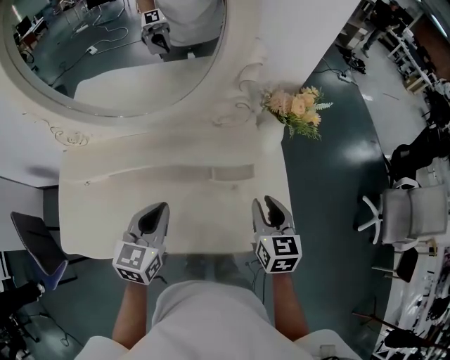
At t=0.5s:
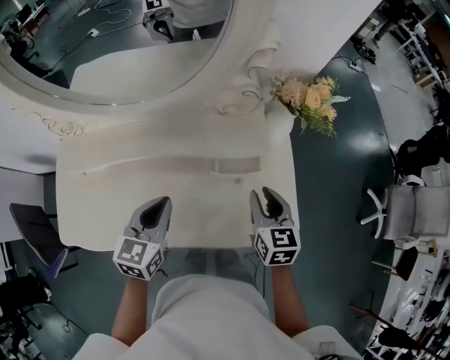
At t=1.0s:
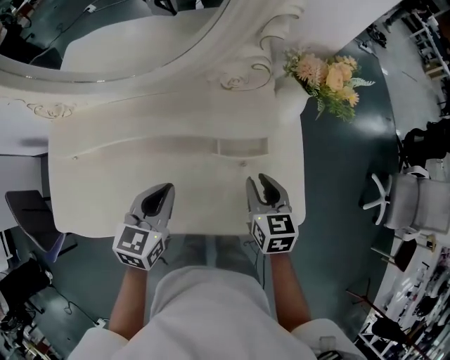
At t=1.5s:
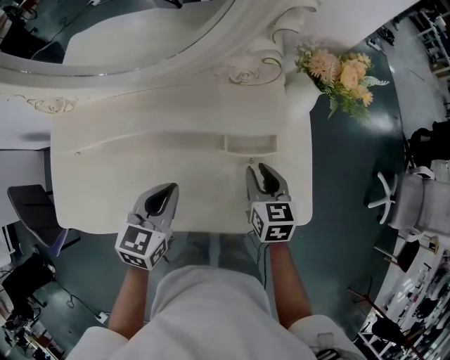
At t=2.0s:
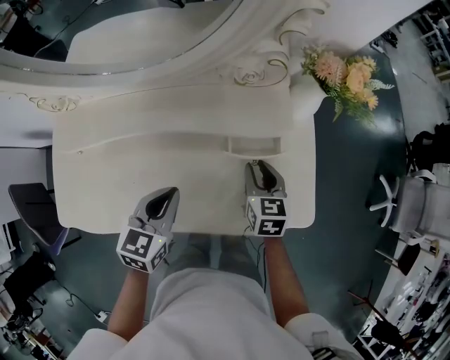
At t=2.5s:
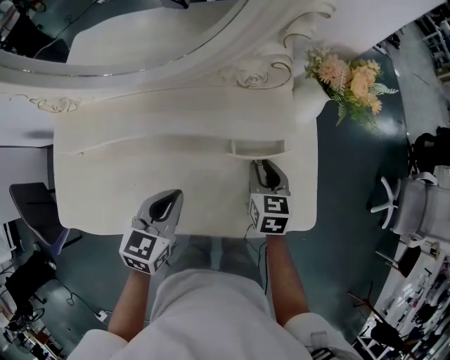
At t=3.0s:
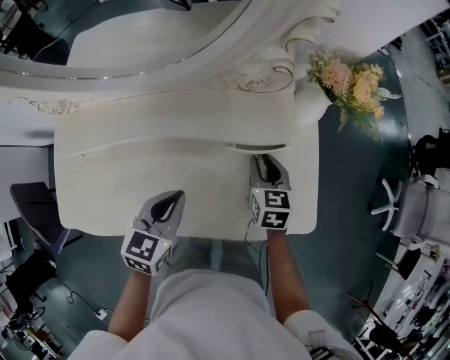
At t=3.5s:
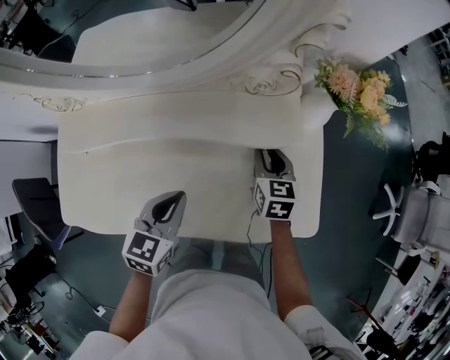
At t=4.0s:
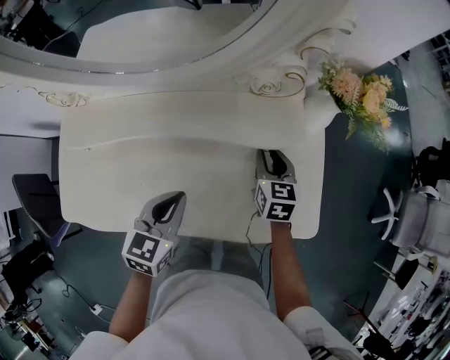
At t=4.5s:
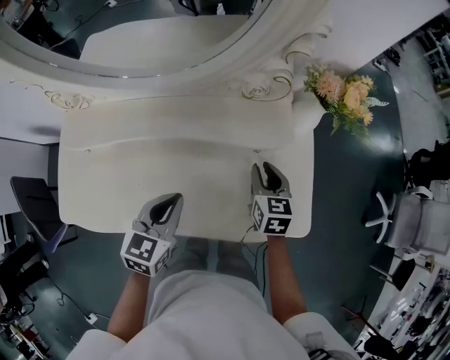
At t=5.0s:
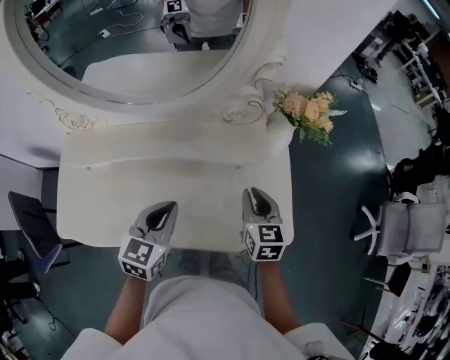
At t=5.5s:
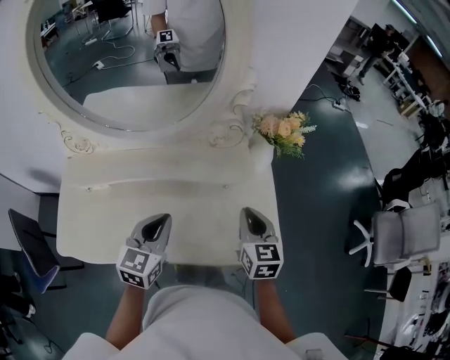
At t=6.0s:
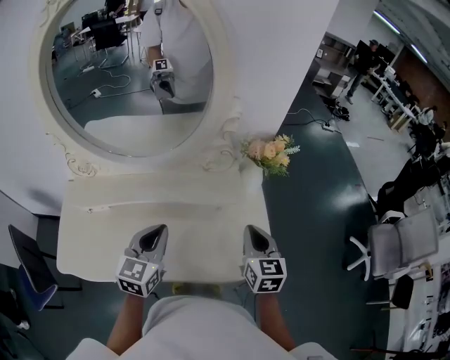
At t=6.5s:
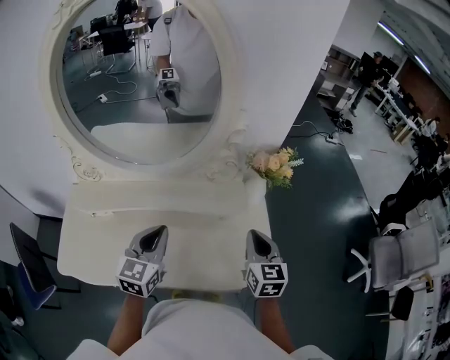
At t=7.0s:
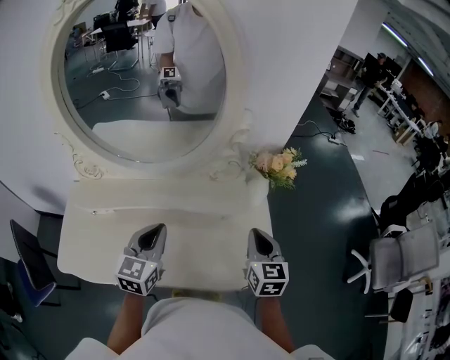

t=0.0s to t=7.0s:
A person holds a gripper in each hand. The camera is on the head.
t=0.0s to t=2.0s: The left gripper moves downward, roughly 10 cm. Meanwhile the right gripper travels downward and to the left by approximately 15 cm.
t=2.0s to t=3.5s: The right gripper shifts some 5 cm forward.
t=3.5s to t=5.0s: The left gripper moves upward, approximately 10 cm. Meanwhile the right gripper shifts roughly 15 cm upward and backward.
t=5.0s to t=7.0s: Both grippers travel together upward, some 10 cm.

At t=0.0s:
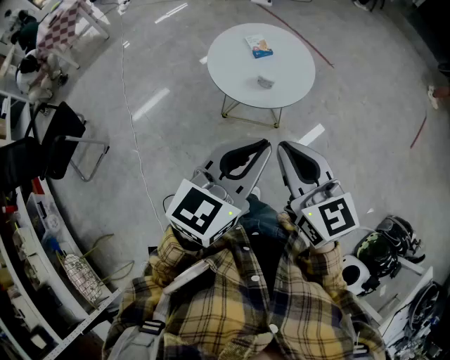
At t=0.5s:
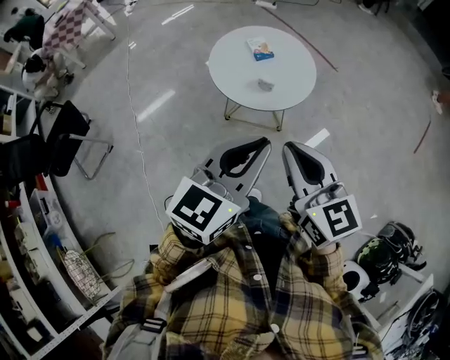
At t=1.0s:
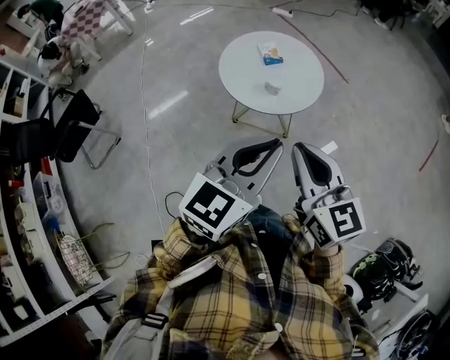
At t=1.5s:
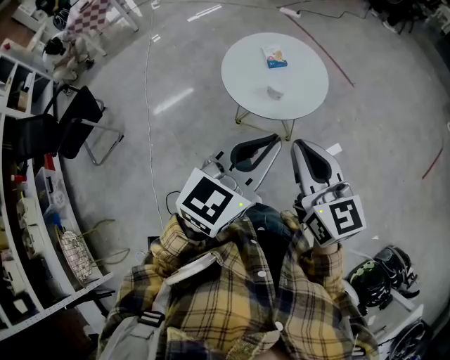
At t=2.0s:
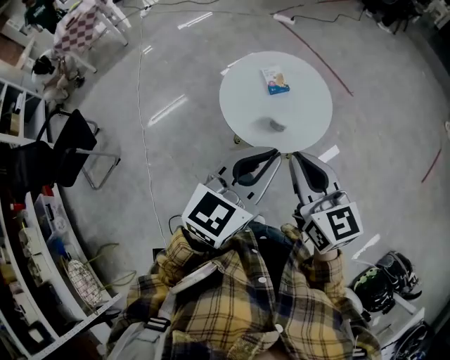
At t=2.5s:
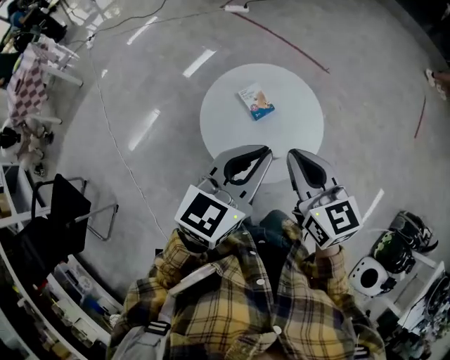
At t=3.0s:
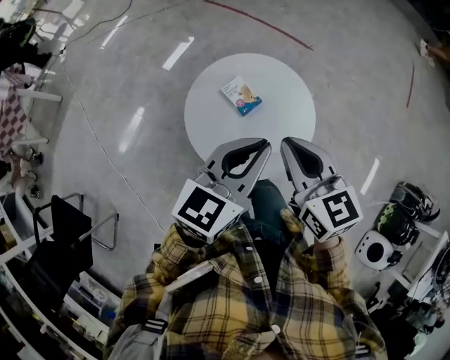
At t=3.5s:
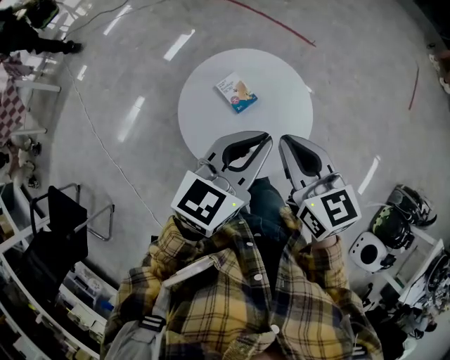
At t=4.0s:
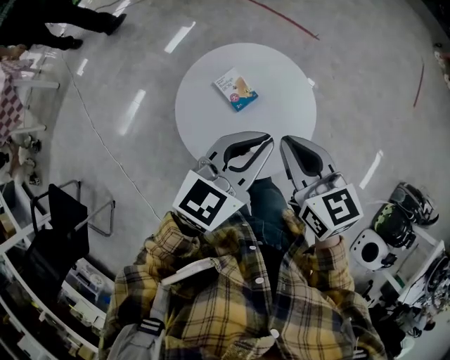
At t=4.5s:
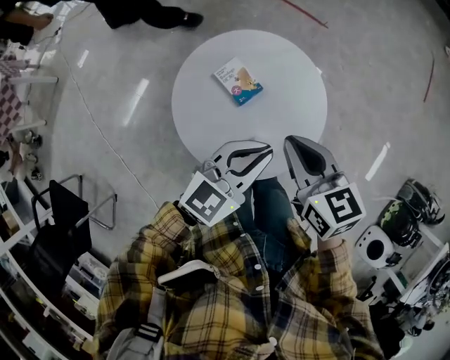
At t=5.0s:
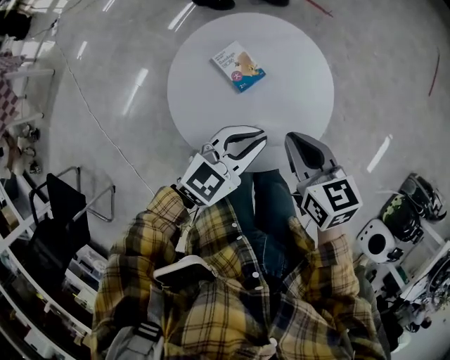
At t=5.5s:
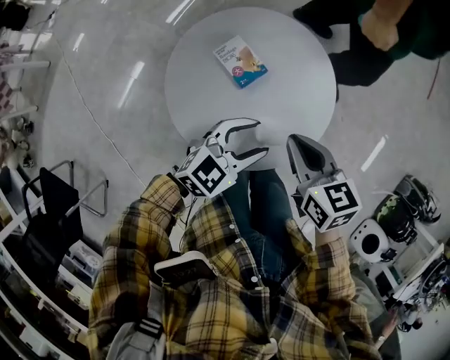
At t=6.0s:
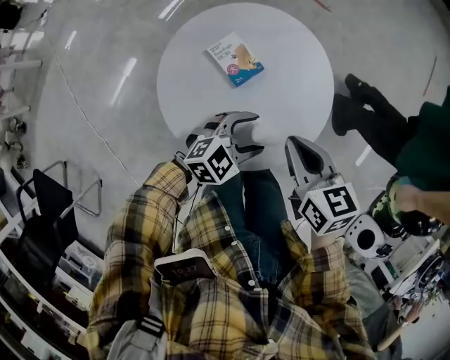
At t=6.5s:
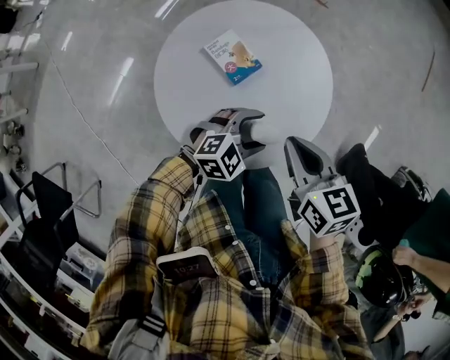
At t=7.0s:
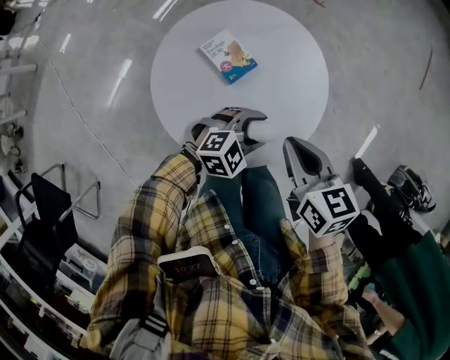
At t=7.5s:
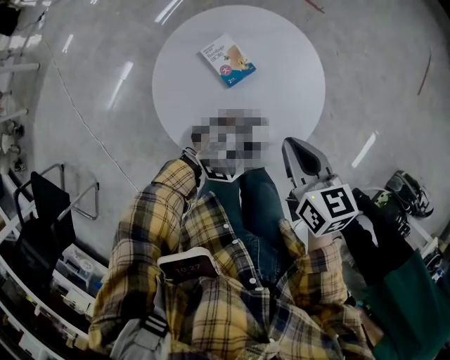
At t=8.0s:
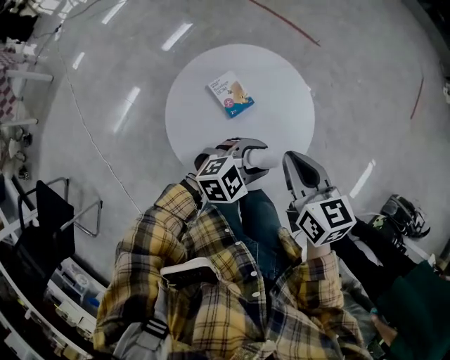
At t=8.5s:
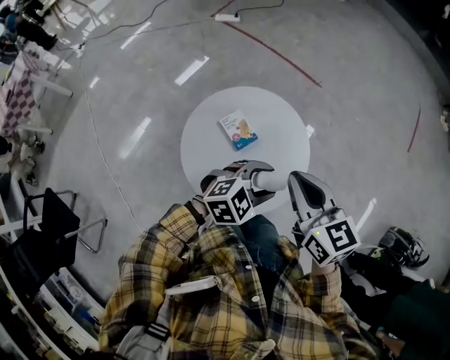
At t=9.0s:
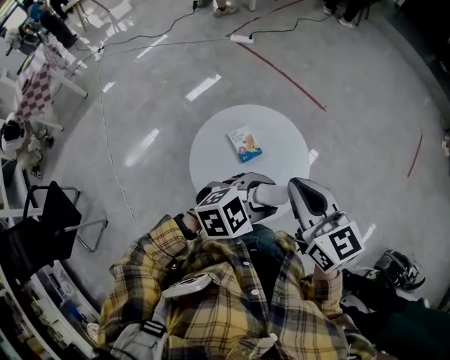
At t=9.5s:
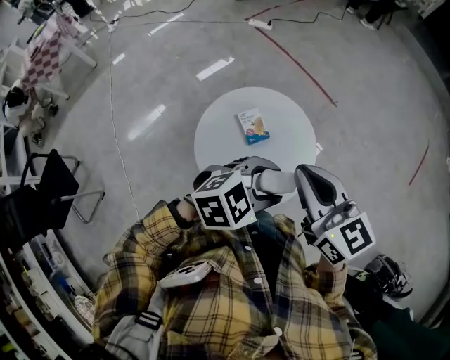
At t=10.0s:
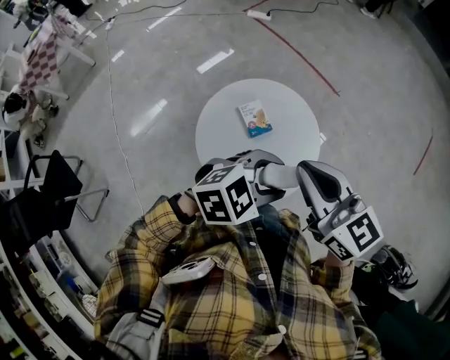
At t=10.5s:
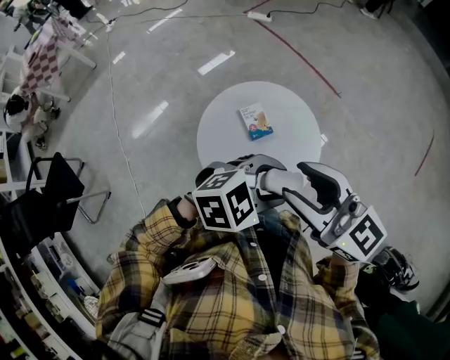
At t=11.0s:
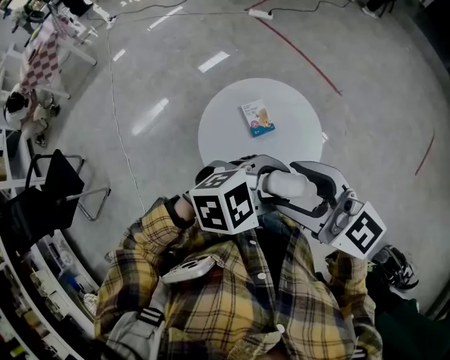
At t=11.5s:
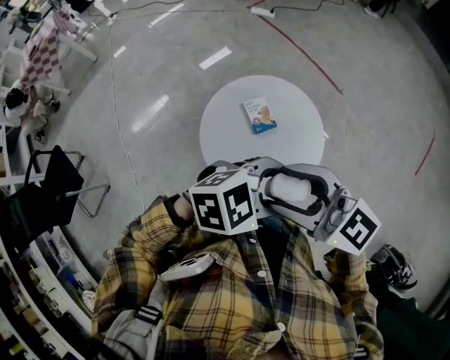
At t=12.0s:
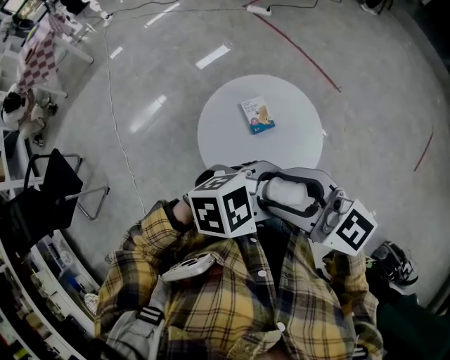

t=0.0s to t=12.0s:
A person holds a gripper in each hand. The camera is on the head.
t=0.0s to t=2.0s: The grippers both shift forward by approximately 15 cm.
t=2.0s to t=4.0s: The grippers both shift forward by about 20 cm. The right gripper turns by some 20 degrees. The left gripper swivels about 20 degrees.
t=4.0s to t=6.0s: The right gripper travels downward by about 15 cm, while the left gripper shifts approximately 25 cm downward, rotates roughly 40 degrees, and opens its fingers.
t=6.0s to t=8.0s: Both grippers move upward, about 5 cm.
t=8.0s to t=10.0s: Both grippers move upward, about 20 cm. The right gripper swivels roughly 30 degrees.
t=10.0s to t=12.0s: The right gripper moves roughly 10 cm, rotates roughly 30 degrees, and opens.

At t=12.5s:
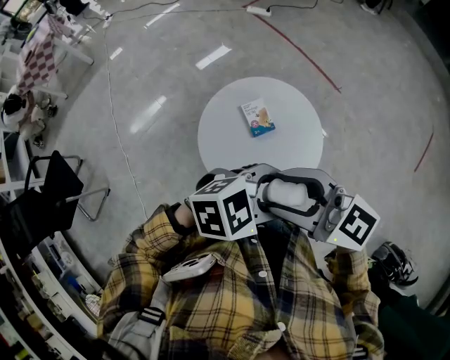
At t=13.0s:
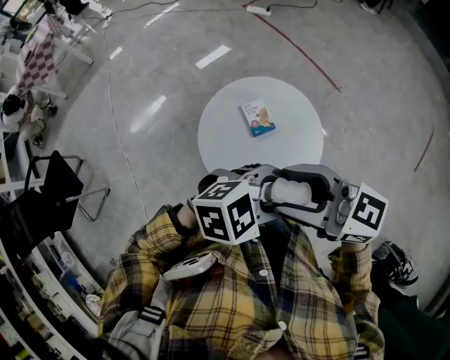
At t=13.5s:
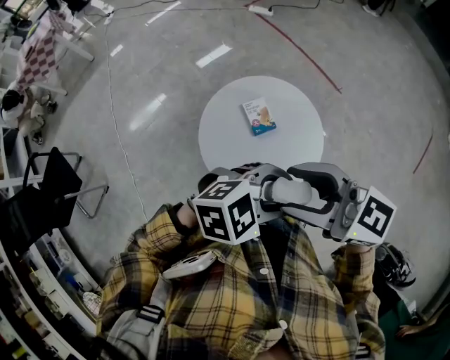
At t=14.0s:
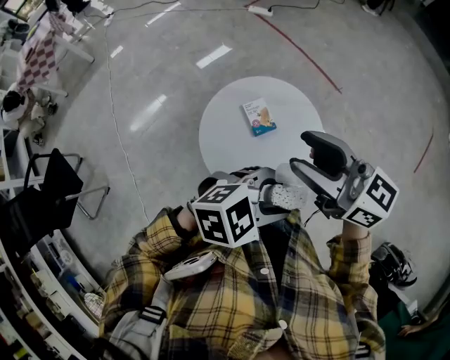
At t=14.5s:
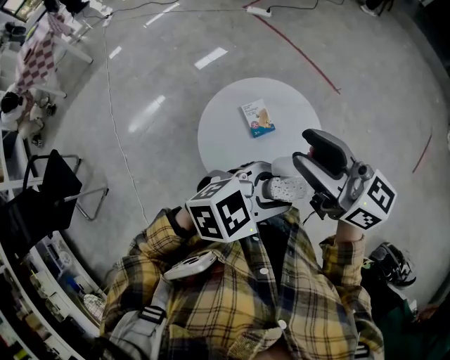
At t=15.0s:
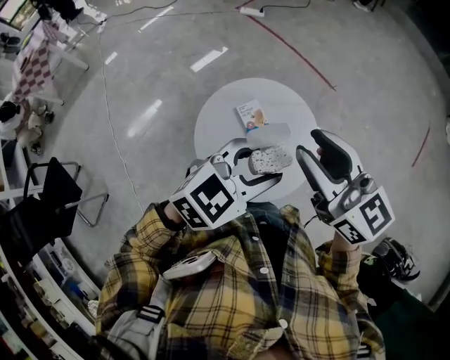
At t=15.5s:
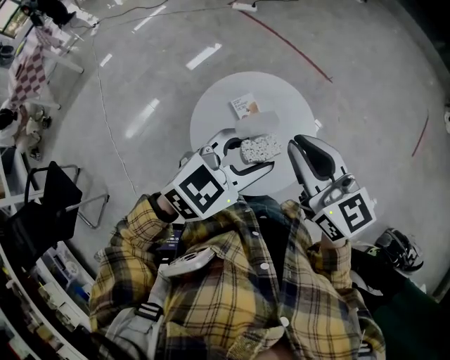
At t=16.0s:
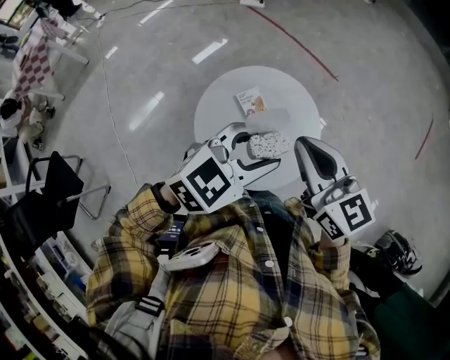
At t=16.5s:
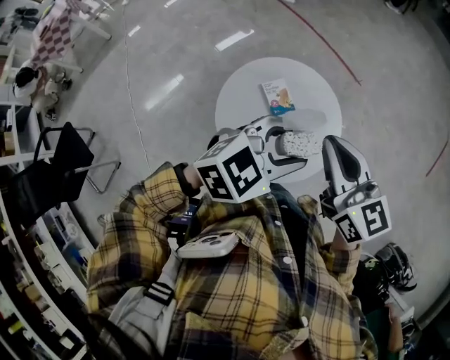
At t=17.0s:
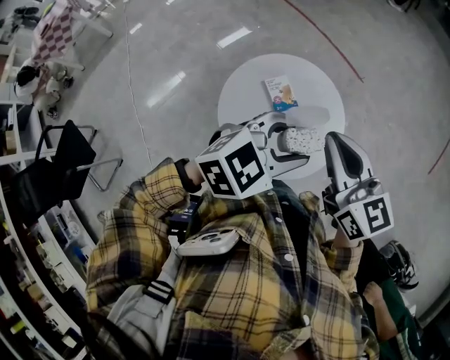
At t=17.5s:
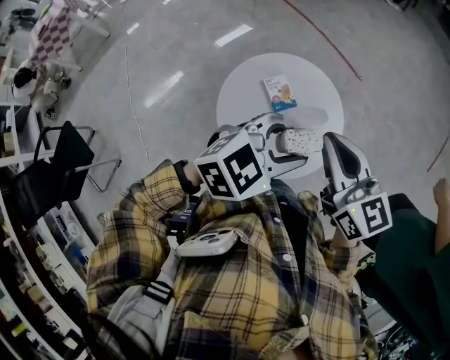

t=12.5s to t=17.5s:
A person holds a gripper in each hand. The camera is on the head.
t=12.5s to t=15.0s: The left gripper changes place by about 10 cm, and changes its angle by approximately 20 degrees, while the right gripper ends up some 10 cm from where it was, and swivels roughly 30 degrees.
t=15.0s to t=17.5s: The right gripper shifts some 5 cm downward, and closes.

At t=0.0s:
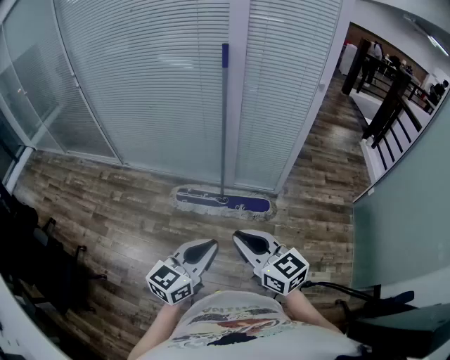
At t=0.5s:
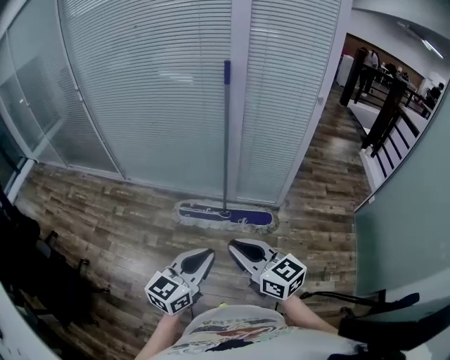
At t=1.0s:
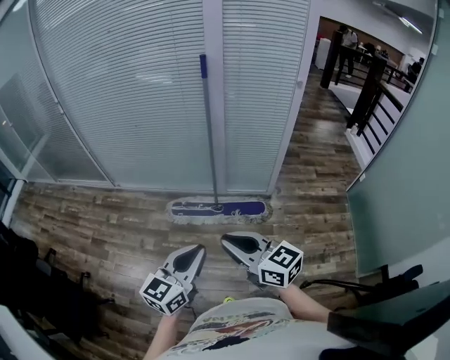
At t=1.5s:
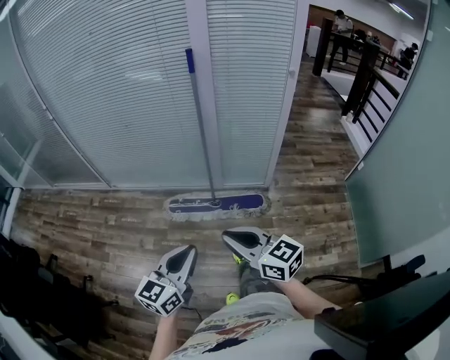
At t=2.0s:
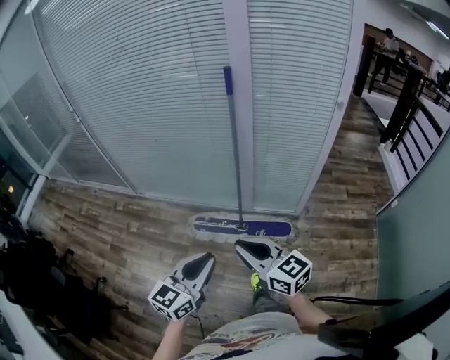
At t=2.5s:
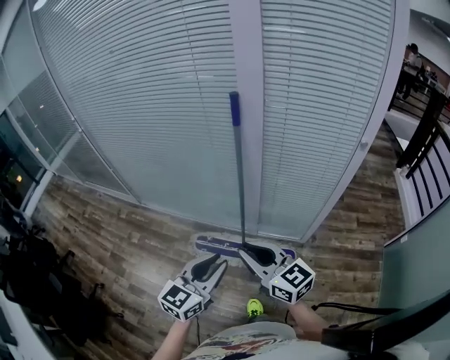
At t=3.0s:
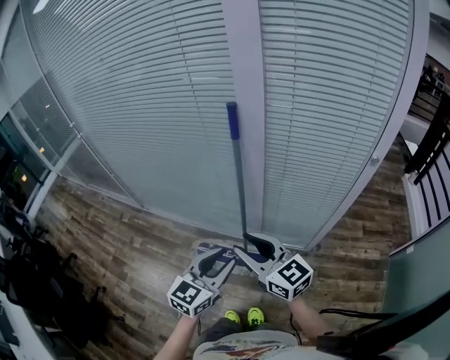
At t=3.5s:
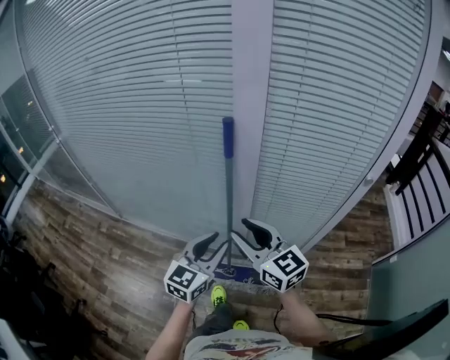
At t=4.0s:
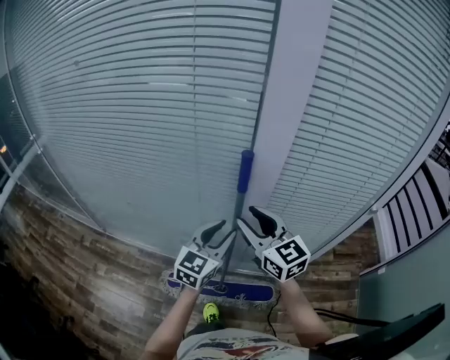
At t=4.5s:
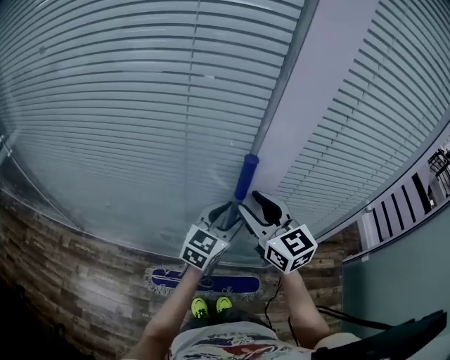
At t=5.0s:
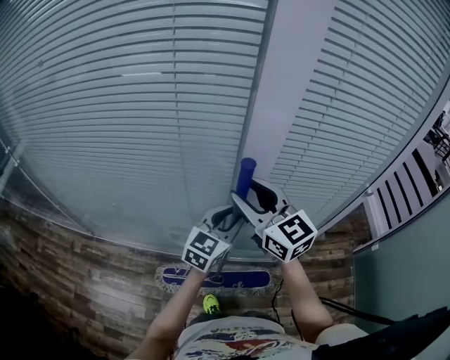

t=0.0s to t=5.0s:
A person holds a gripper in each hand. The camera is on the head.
t=0.0s to t=2.5s: The two grippers go roughly 35 cm forward.
t=2.5s to t=5.0s: Both grippers move forward, roughly 40 cm. The right gripper swivels some 30 degrees, and opens up.
